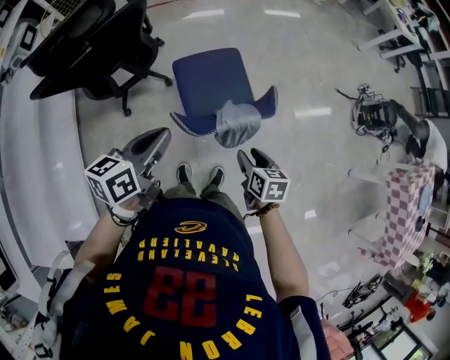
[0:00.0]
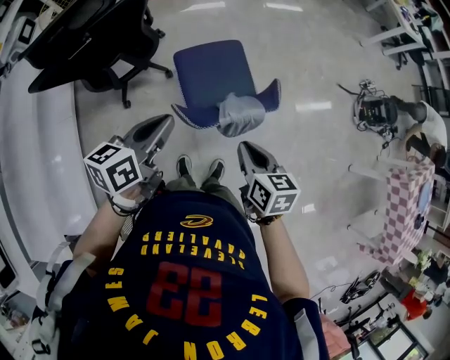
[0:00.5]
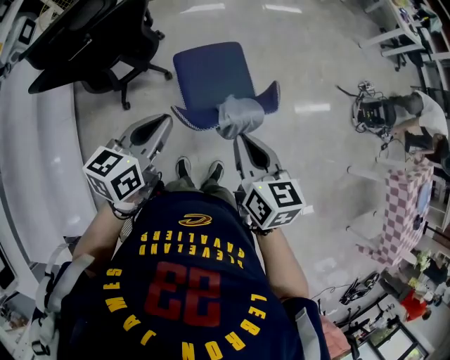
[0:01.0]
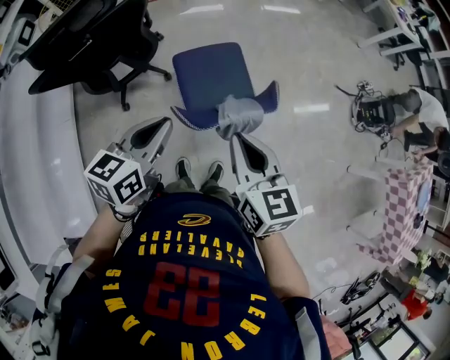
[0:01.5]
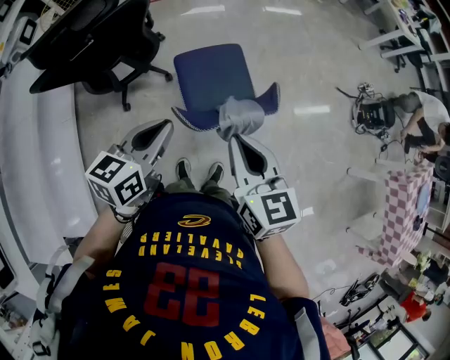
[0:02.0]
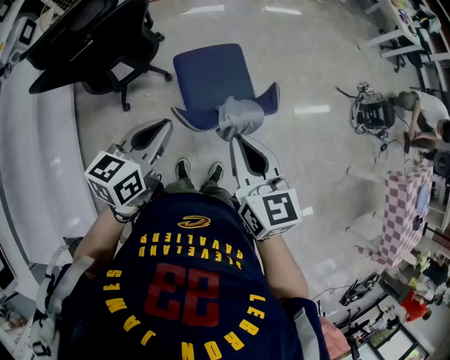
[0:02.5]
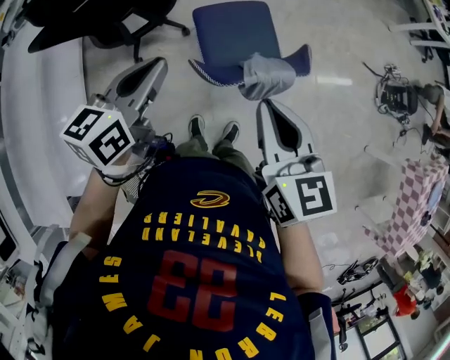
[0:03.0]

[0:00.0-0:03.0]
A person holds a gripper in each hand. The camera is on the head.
0:00.0 to 0:01.5: The right gripper goes some 20 cm upward, rotates some 30 degrees, and closes.
0:01.5 to 0:03.0: The left gripper moves to the left, approximately 5 cm.

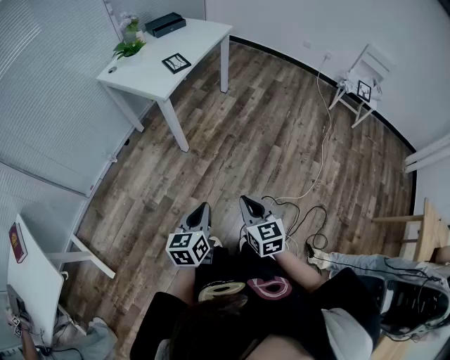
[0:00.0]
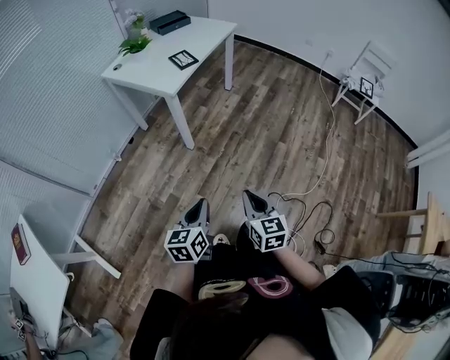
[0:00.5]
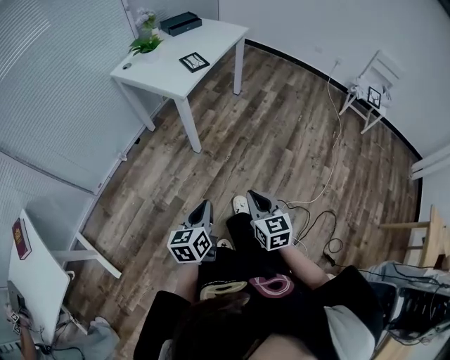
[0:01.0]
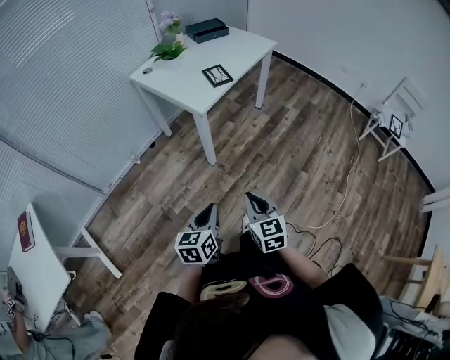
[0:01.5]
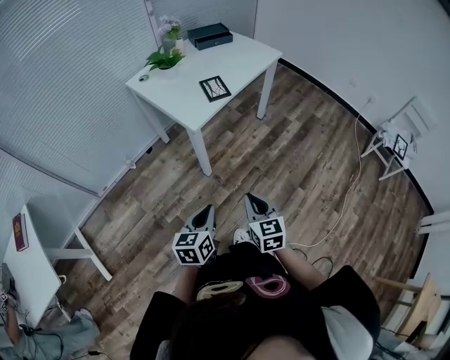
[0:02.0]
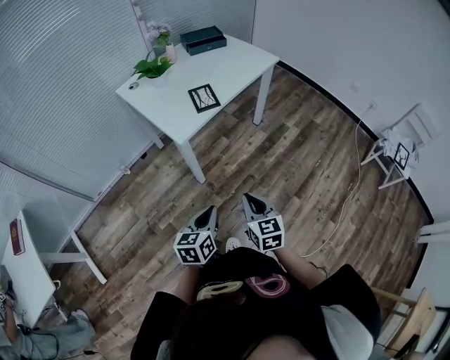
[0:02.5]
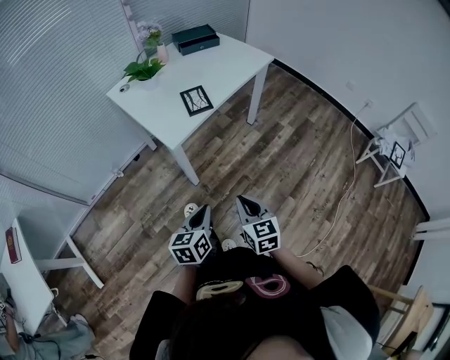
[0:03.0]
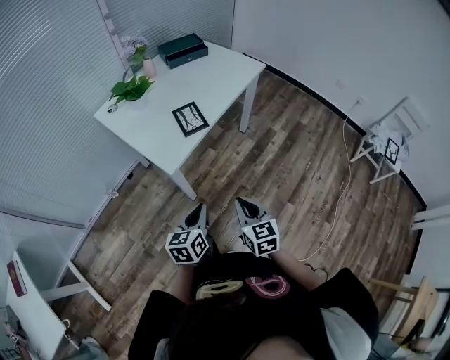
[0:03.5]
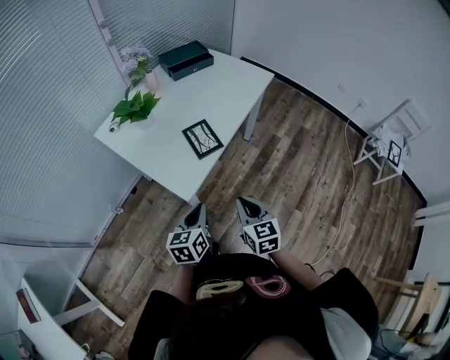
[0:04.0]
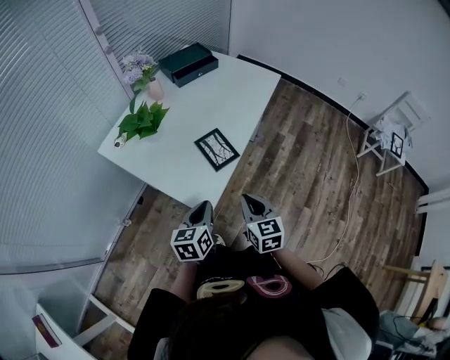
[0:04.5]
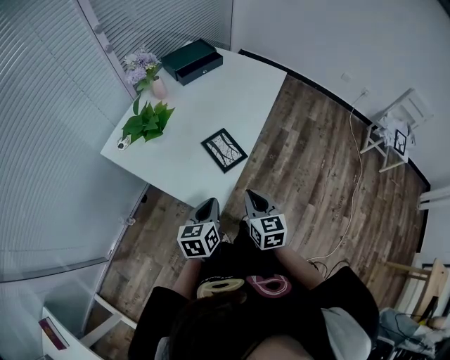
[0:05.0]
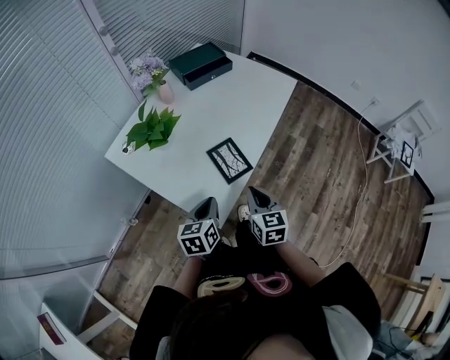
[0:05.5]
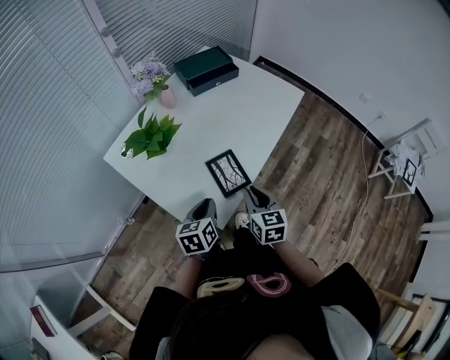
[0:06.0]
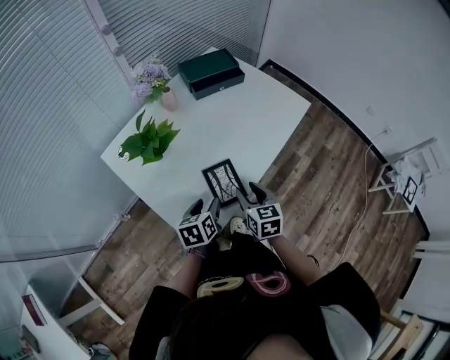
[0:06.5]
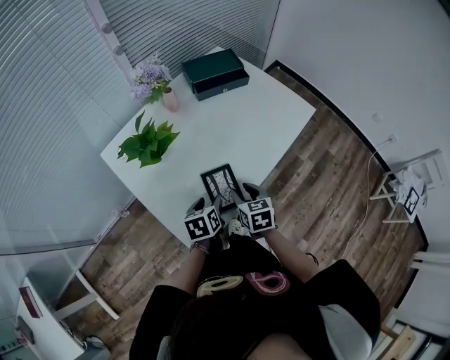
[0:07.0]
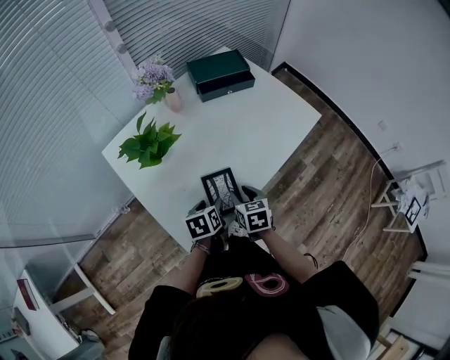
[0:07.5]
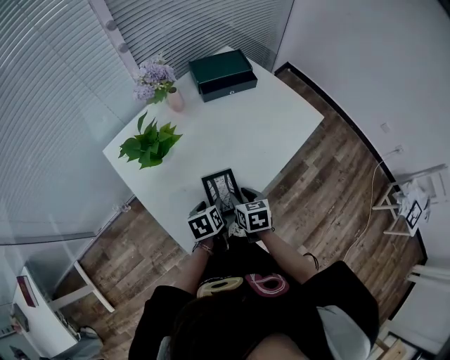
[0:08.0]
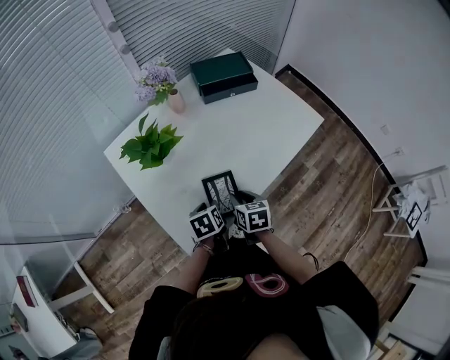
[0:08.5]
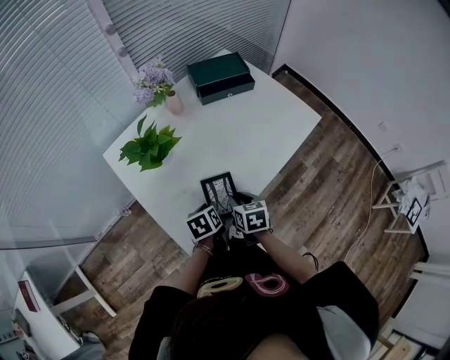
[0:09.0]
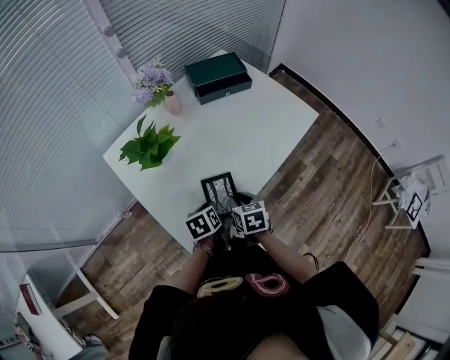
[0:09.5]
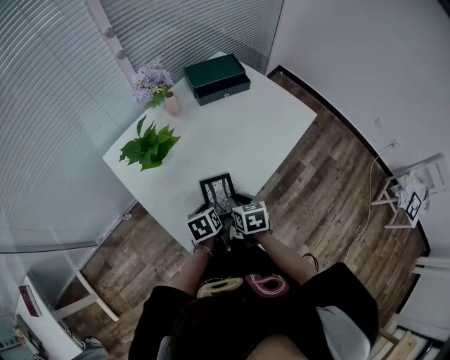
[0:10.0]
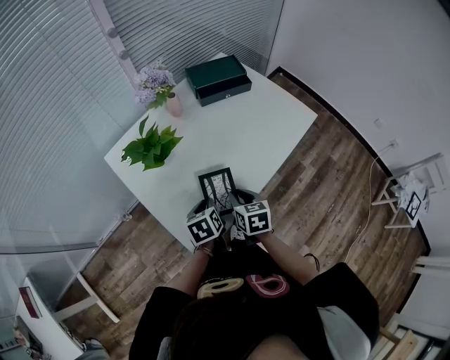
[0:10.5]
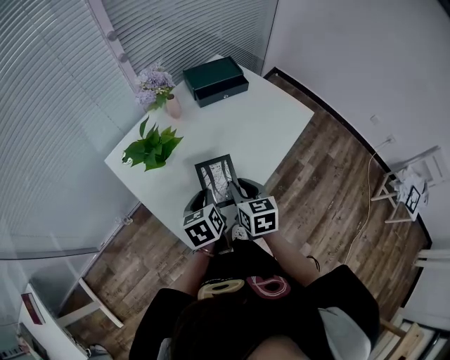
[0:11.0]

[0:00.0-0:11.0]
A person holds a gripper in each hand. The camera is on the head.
0:00.0 to 0:02.0: The grippers both shift forward by some 20 cm.
0:02.0 to 0:03.5: The two grippers go approximately 20 cm forward.
0:03.5 to 0:05.5: Both grippers move forward and to the left, some 30 cm.
0:05.5 to 0:07.5: The right gripper goes approximately 15 cm forward and downward, turns by some 30 degrees, and opens up, while the left gripper is displaced forward, downward and to the right by roughly 15 cm, changes its angle by about 30 degrees, and opens its fingers.
0:07.5 to 0:09.0: The left gripper closes its fingers.
0:09.0 to 0:11.0: Both grippers move upward, about 10 cm.

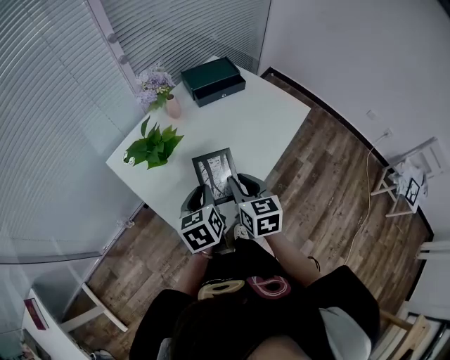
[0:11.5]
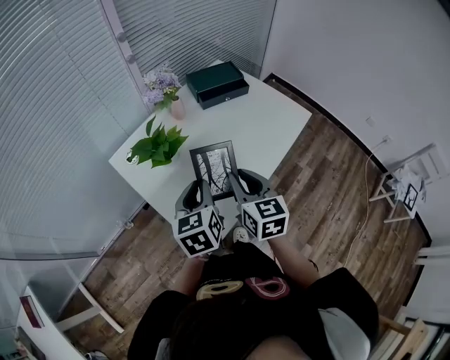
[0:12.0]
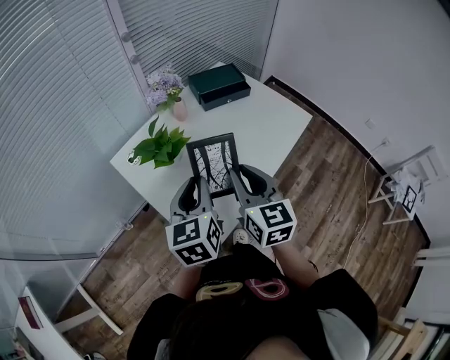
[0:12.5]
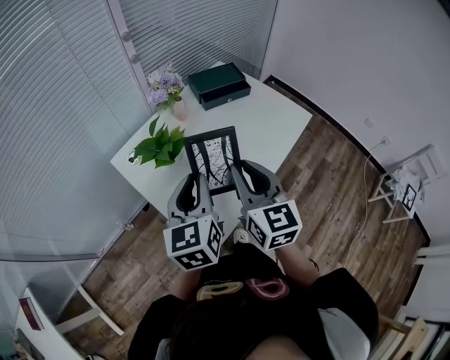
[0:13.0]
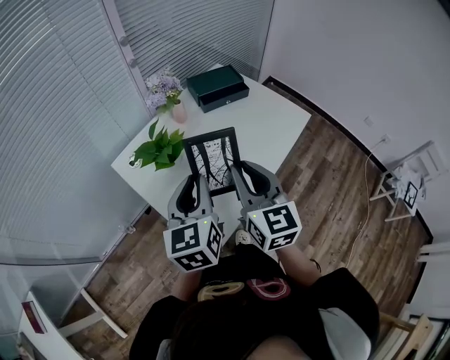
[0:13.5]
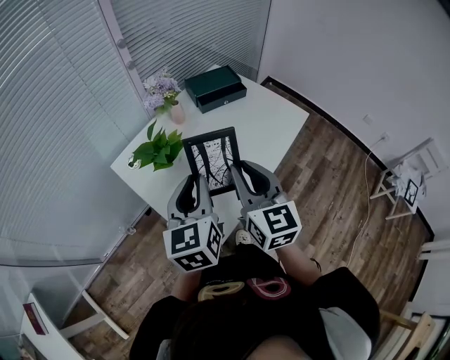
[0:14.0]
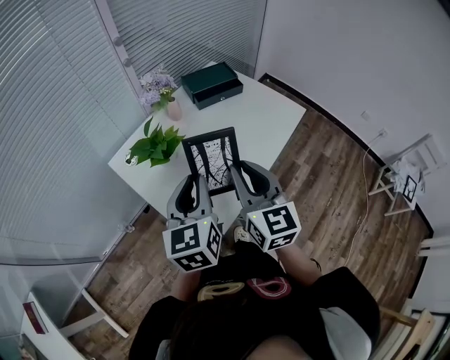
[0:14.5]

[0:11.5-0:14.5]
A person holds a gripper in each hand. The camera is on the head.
0:11.5 to 0:13.0: Both grippers travel together upward, some 15 cm. The left gripper rotates roughly 20 degrees.
0:13.0 to 0:14.5: The grippers make only small movements.

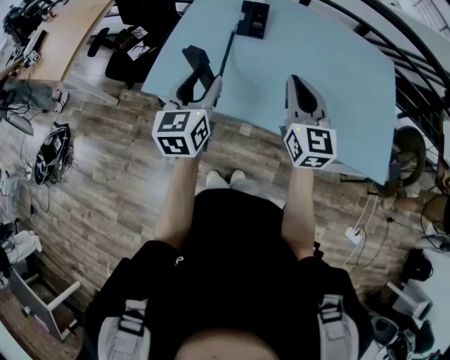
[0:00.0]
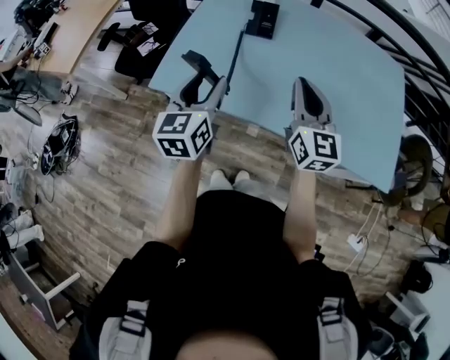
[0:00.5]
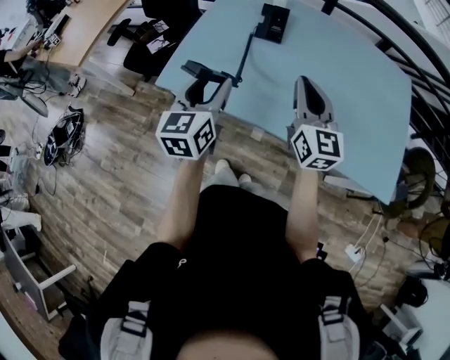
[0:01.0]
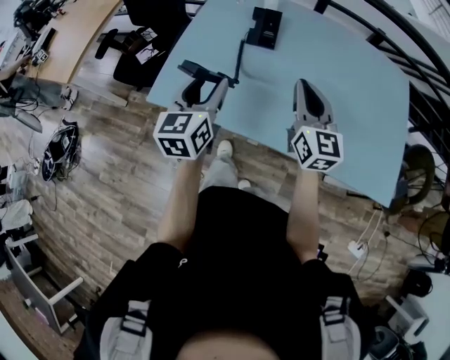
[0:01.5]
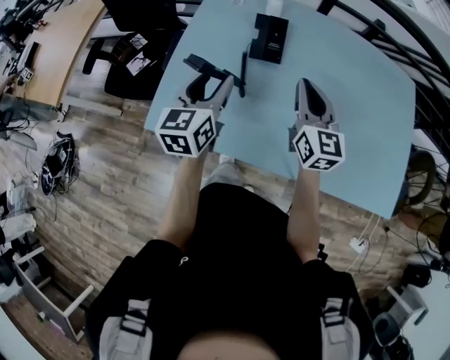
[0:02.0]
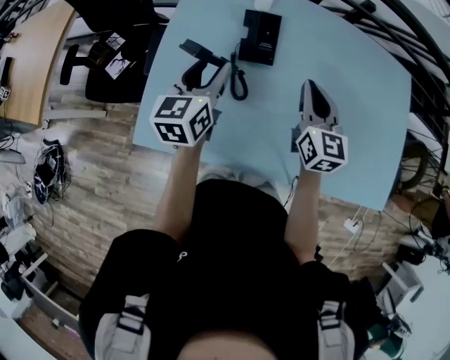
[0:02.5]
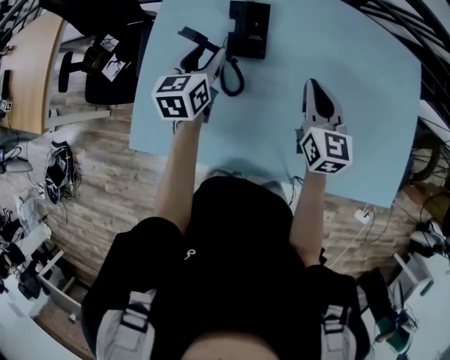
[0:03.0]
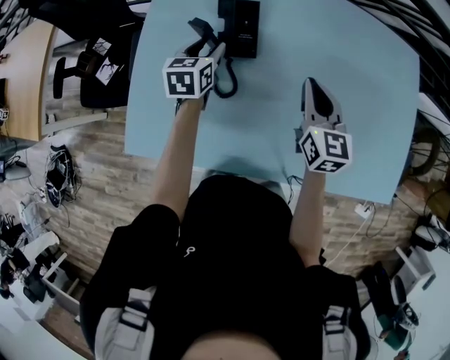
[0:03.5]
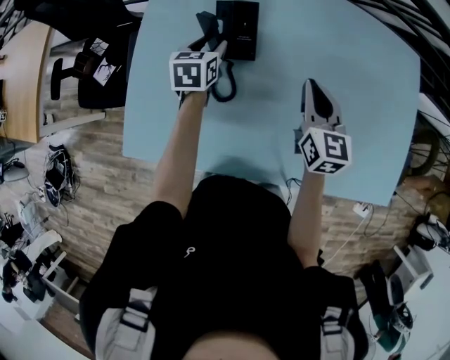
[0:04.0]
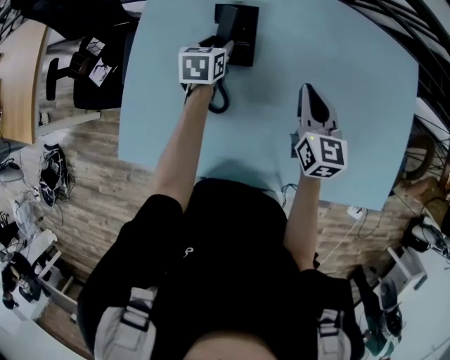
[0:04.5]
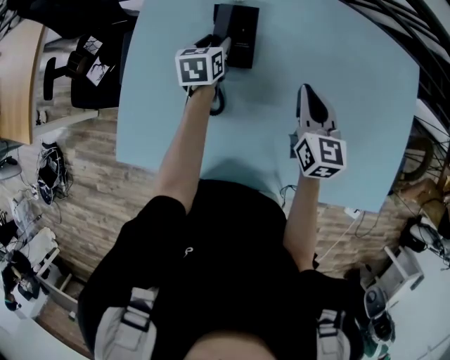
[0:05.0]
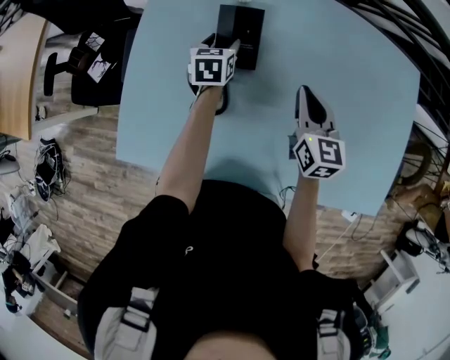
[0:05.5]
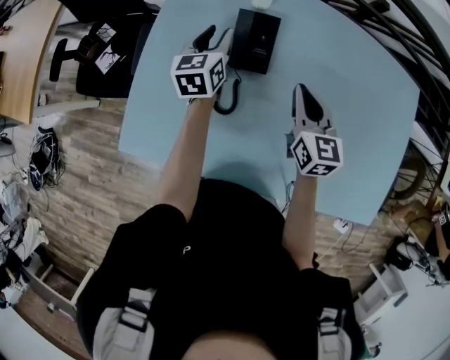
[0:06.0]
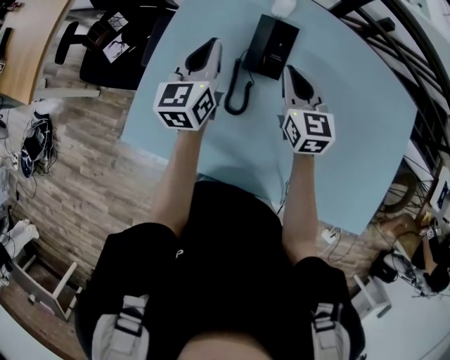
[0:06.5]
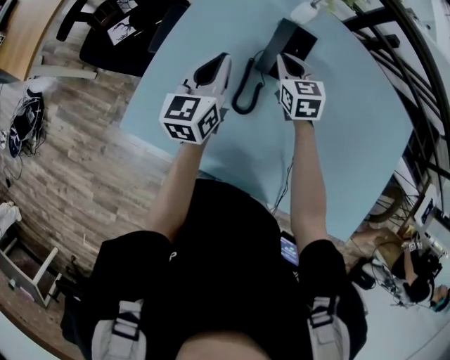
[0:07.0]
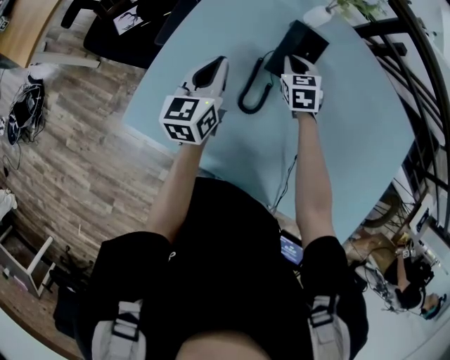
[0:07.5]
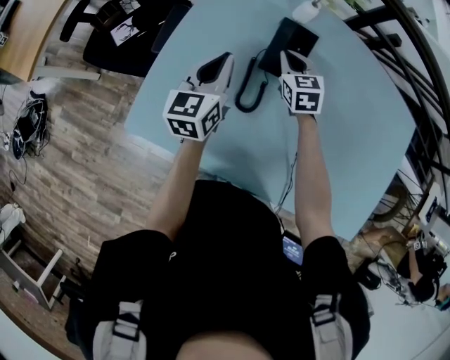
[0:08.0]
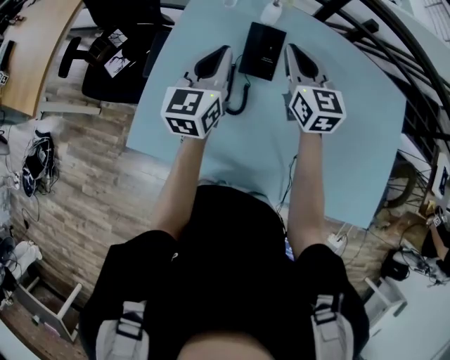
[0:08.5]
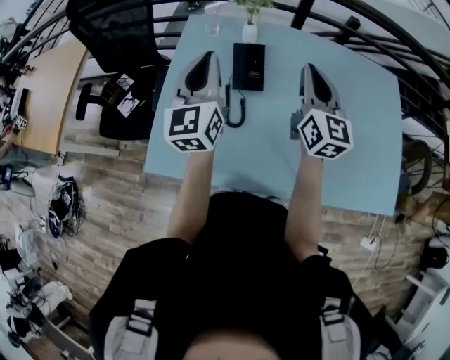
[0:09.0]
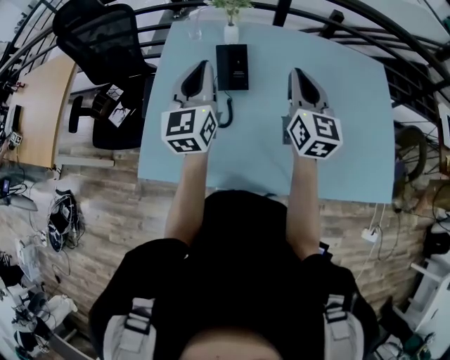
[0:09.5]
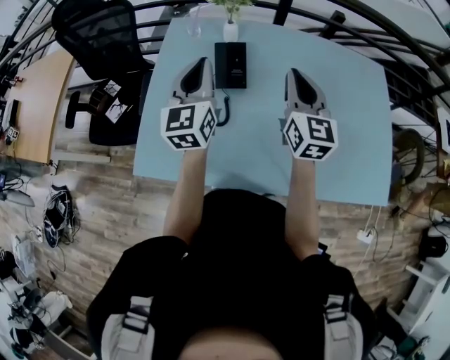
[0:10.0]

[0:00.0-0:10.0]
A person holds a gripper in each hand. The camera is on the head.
0:00.0 to 0:02.0: The grippers both shift forward by roughly 20 cm.
0:02.0 to 0:04.0: The left gripper is displaced forward and downward by approximately 30 cm, and swivels some 30 degrees, while the right gripper goes about 15 cm forward, downward and to the right.
0:04.0 to 0:06.0: The left gripper goes approximately 5 cm upward, and changes its angle by approximately 20 degrees, while the right gripper moves to the left, approximately 5 cm.
0:06.0 to 0:08.0: The right gripper travels to the left, forward and downward by some 20 cm, and swivels some 30 degrees; the left gripper goes approximately 15 cm backward and to the left, and closes.
0:08.0 to 0:10.0: The left gripper moves upward and to the right, about 20 cm, and swivels roughly 20 degrees, while the right gripper moves upward, to the right and backward, roughly 35 cm, and tips its fingers upward by roughly 30 degrees.
